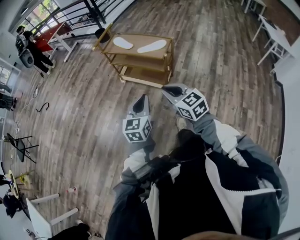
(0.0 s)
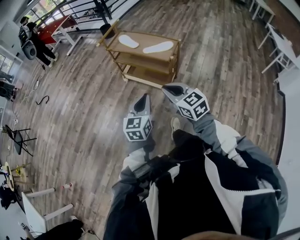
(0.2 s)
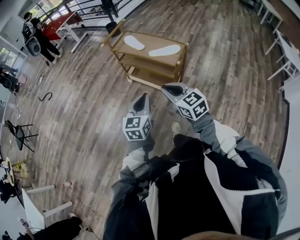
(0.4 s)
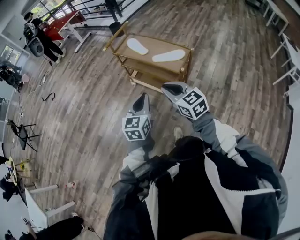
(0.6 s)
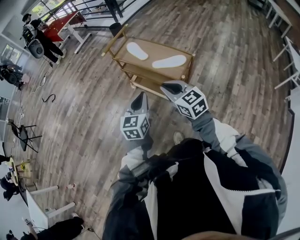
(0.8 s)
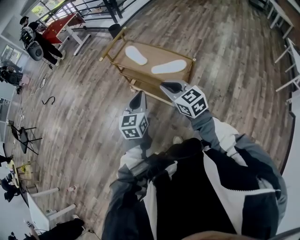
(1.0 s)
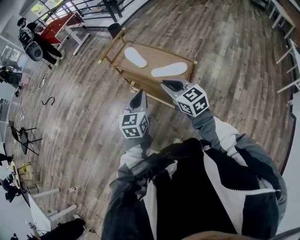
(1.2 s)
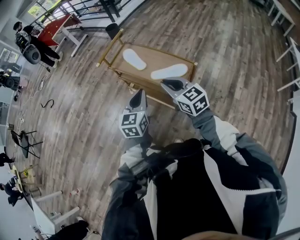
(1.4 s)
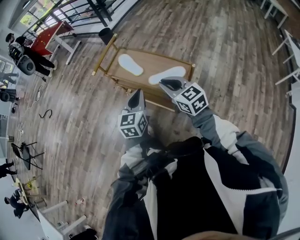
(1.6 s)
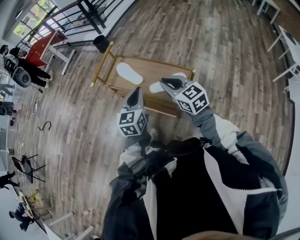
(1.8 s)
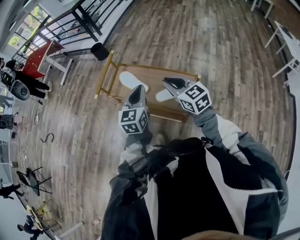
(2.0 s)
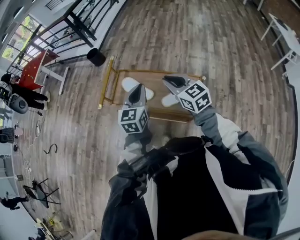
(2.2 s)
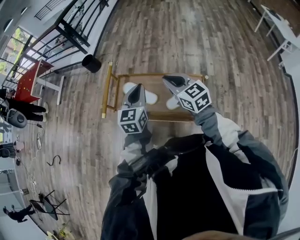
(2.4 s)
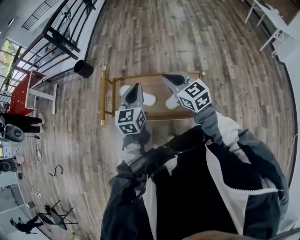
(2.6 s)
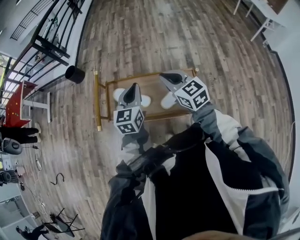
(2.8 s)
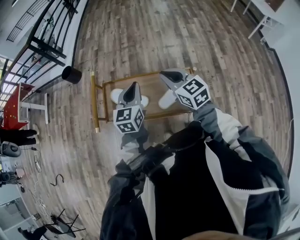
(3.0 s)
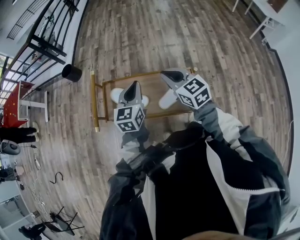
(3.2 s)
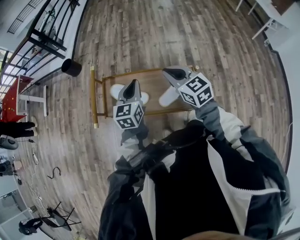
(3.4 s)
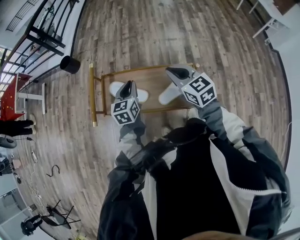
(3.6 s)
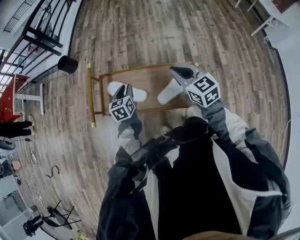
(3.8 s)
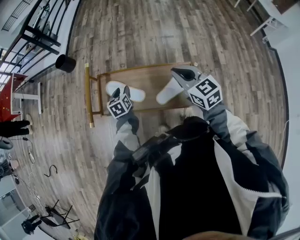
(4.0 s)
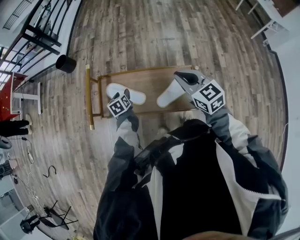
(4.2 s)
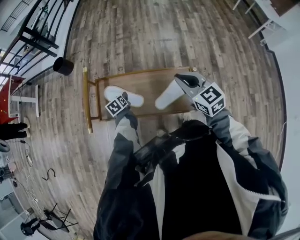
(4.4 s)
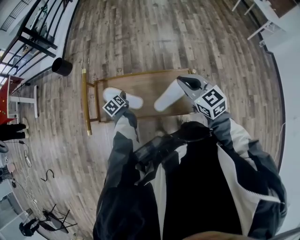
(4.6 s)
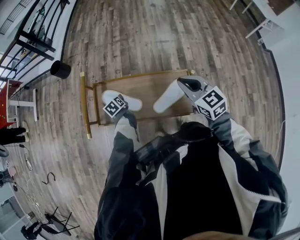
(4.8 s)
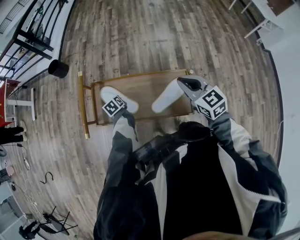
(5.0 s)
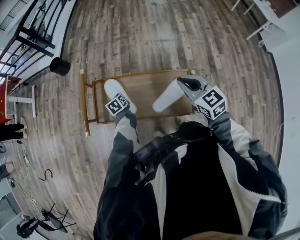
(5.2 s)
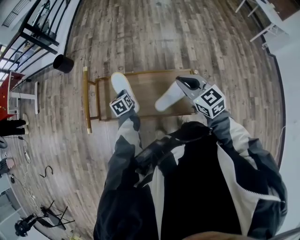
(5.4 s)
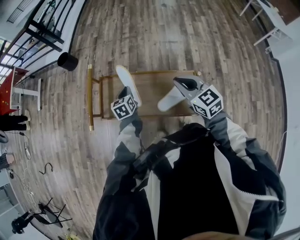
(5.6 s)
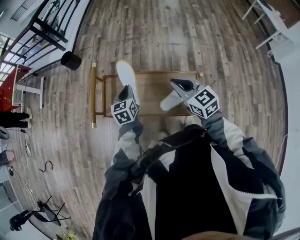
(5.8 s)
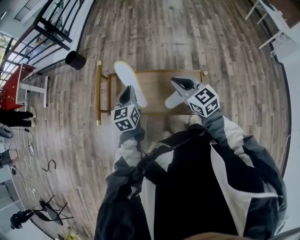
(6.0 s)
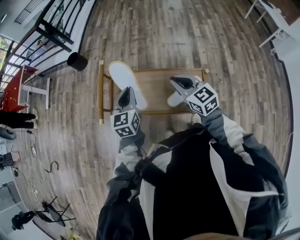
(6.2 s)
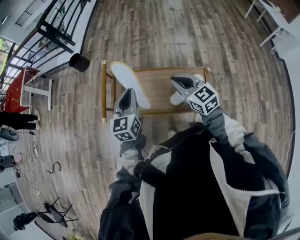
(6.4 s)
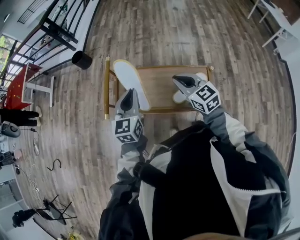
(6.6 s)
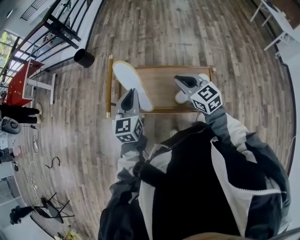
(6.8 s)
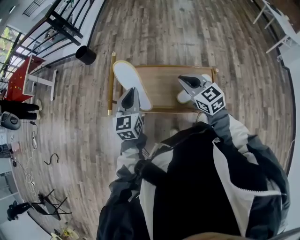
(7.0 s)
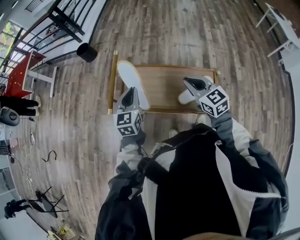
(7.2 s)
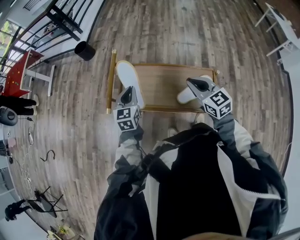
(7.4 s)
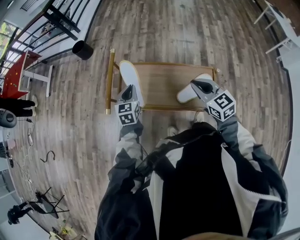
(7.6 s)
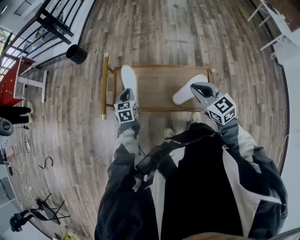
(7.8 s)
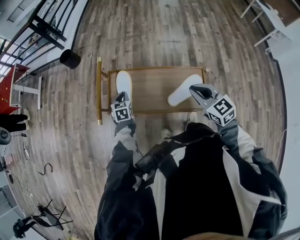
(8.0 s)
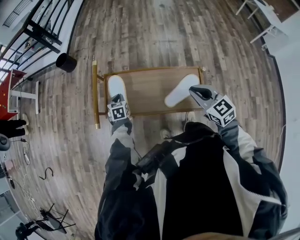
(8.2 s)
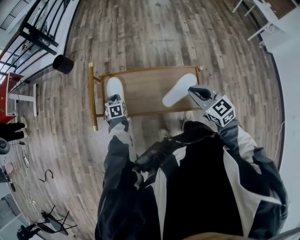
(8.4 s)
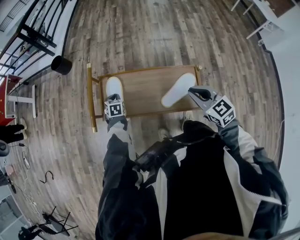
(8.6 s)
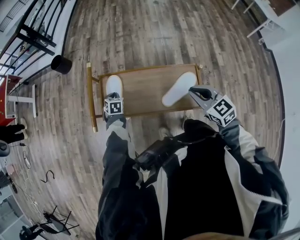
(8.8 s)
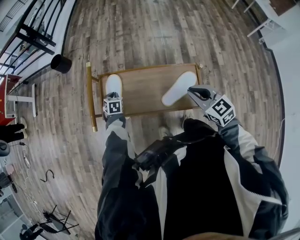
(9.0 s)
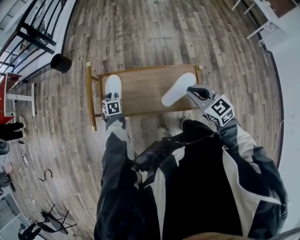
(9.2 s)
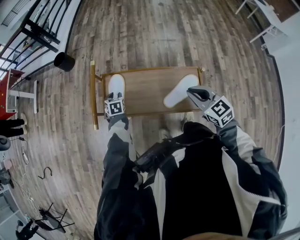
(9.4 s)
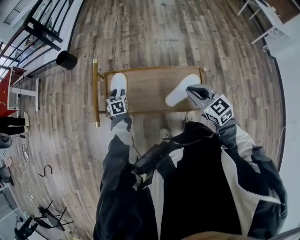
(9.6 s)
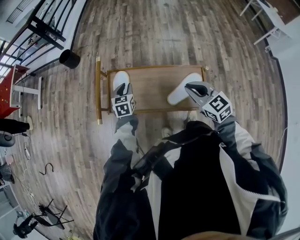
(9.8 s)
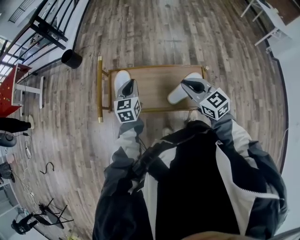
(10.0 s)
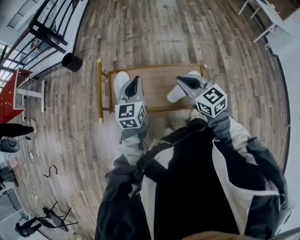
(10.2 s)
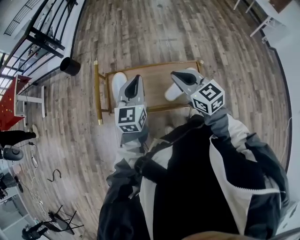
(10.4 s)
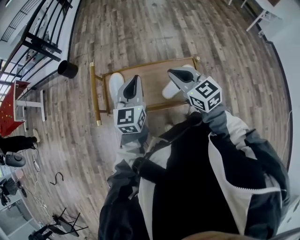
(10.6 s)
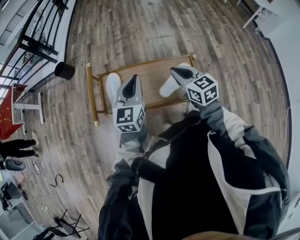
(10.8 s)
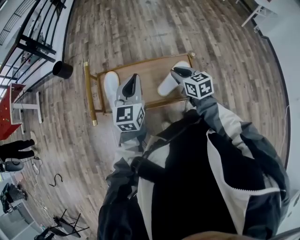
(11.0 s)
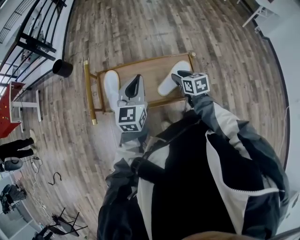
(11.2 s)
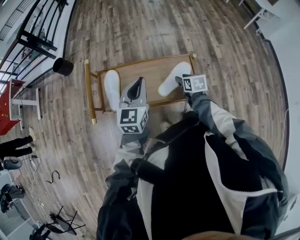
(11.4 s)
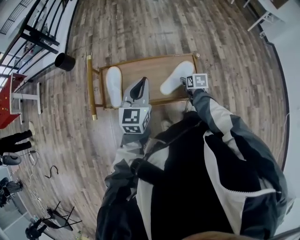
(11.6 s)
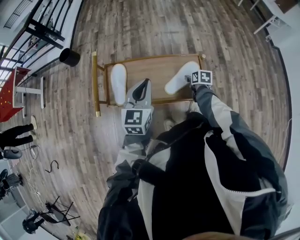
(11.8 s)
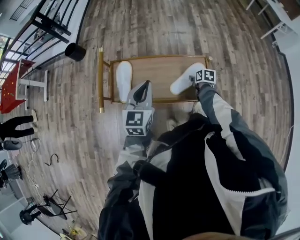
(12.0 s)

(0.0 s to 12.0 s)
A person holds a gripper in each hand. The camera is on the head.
0.0 s - 1.6 s: Both grippers are carried forward, some 40 cm.
1.6 s - 3.0 s: The left gripper shifts by some 25 cm, and turns by roughly 30 degrees; the right gripper changes place by roughly 20 cm, and swivels approximately 30 degrees.
3.0 s - 4.4 s: The left gripper is displaced downward and to the left by roughly 30 cm, angles its fingers downward, by some 40 degrees, and opens; the right gripper shifts about 5 cm to the right.
4.4 s - 6.0 s: The left gripper goes about 20 cm upward, turns by some 40 degrees, and closes; the right gripper heads to the left, covering some 5 cm.
6.0 s - 7.6 s: The left gripper shifts roughly 10 cm to the left and downward.
7.6 s - 9.0 s: The left gripper moves downward and forward, roughly 20 cm, and changes its angle by about 30 degrees. The right gripper moves to the right, some 5 cm.
9.0 s - 10.4 s: The left gripper goes roughly 35 cm upward and to the right, points its fingers roughly 50 degrees further upward, and opens and closes again. Meanwhile the right gripper travels upward and to the left by about 10 cm.
10.4 s - 12.0 s: The left gripper moves roughly 5 cm, while the right gripper shifts roughly 35 cm downward and to the right, tilts its fingers about 40 degrees downward, and opens up.

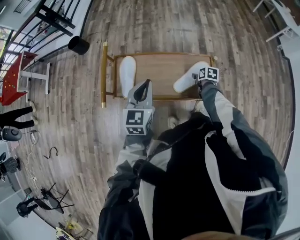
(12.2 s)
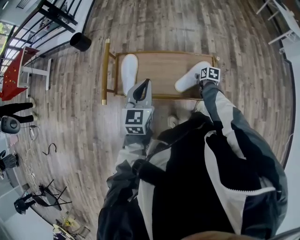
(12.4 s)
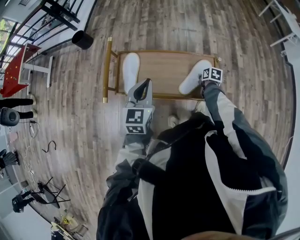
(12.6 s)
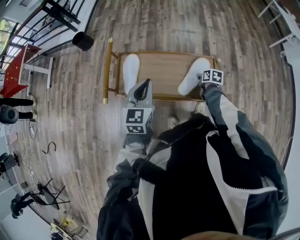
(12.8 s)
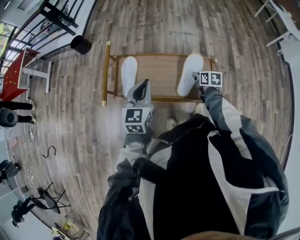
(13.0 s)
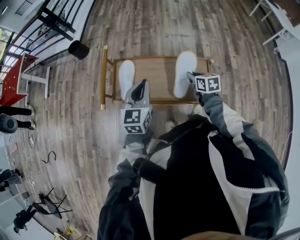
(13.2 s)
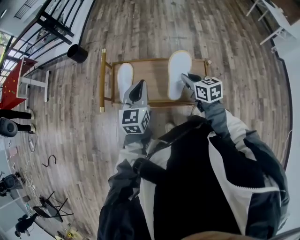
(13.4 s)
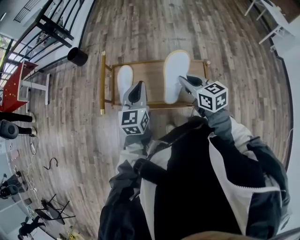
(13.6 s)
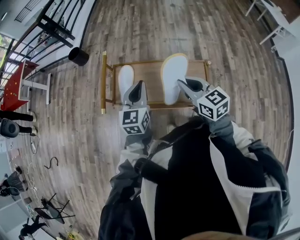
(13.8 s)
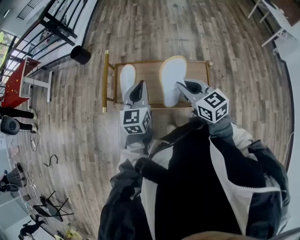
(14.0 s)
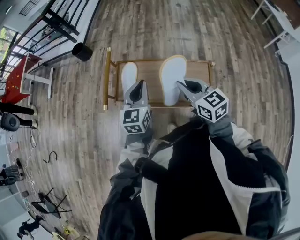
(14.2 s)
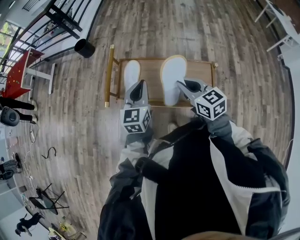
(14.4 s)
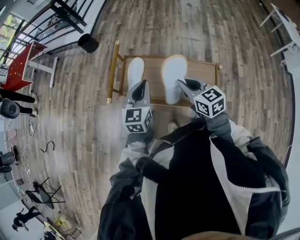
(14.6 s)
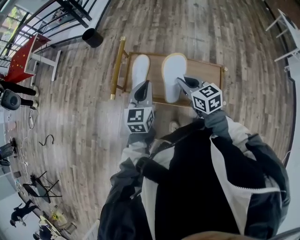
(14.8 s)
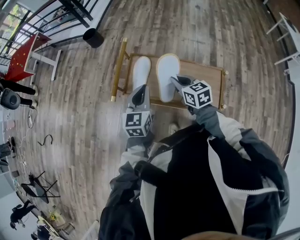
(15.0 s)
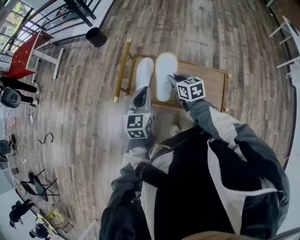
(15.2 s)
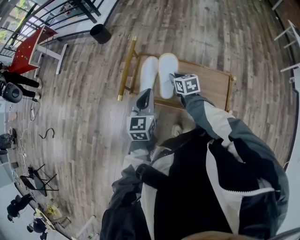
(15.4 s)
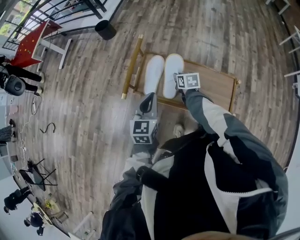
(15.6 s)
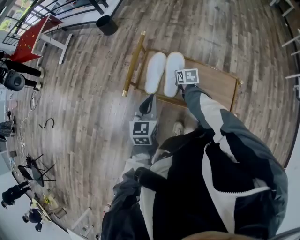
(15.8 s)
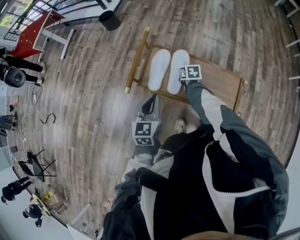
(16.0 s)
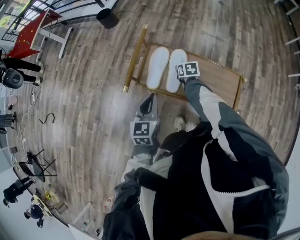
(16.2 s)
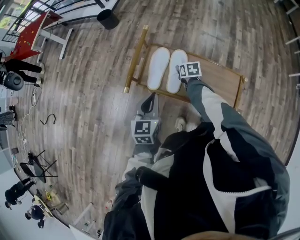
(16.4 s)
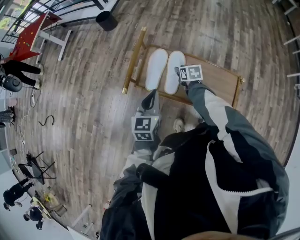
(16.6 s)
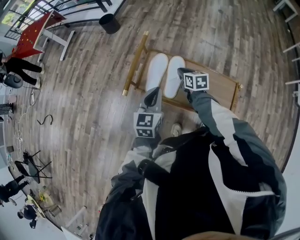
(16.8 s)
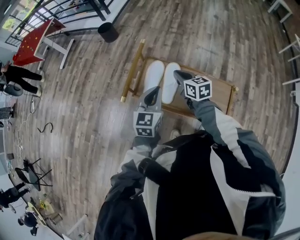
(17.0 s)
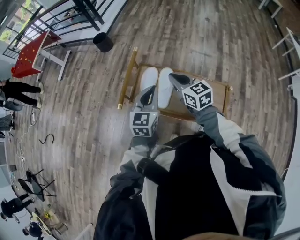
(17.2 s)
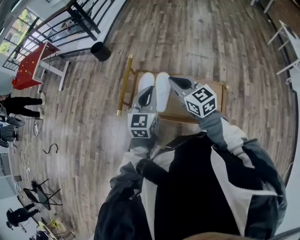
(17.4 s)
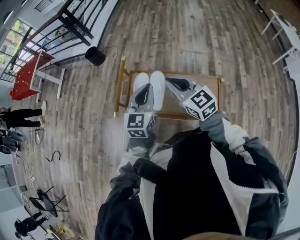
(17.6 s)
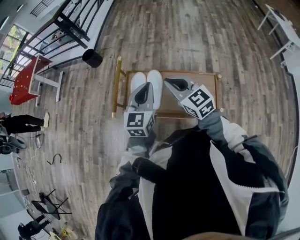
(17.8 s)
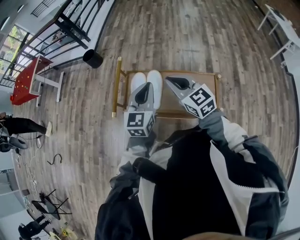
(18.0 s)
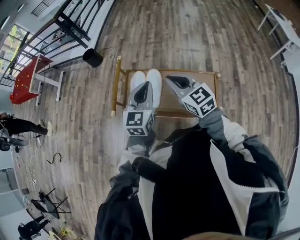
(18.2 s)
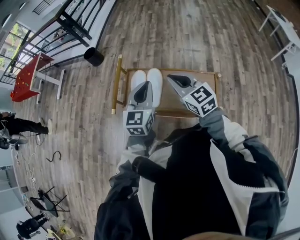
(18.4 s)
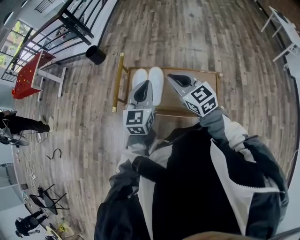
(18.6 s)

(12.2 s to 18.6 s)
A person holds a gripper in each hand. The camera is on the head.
12.2 s - 13.8 s: The right gripper moves upward and to the left, approximately 35 cm, tips its fingers upward by roughly 40 degrees, and closes its fingers.
13.8 s - 15.4 s: The left gripper is displaced to the left by about 10 cm, while the right gripper moves downward, forward and to the left, some 25 cm, and changes its angle by approximately 20 degrees.
15.4 s - 17.0 s: The right gripper heads upward, covering some 10 cm, and opens and closes again.
17.0 s - 18.6 s: The right gripper heads upward, backward and to the right, covering some 20 cm, and changes its angle by some 30 degrees. The left gripper is displaced upward and to the right by about 10 cm.

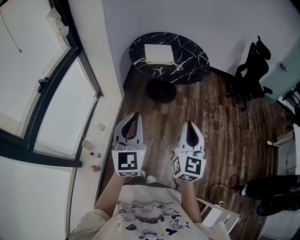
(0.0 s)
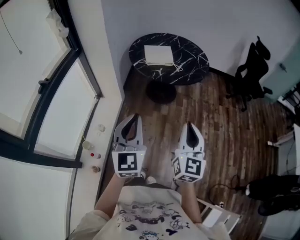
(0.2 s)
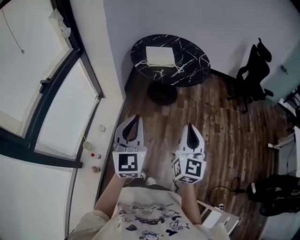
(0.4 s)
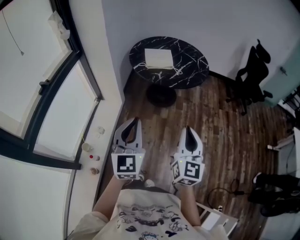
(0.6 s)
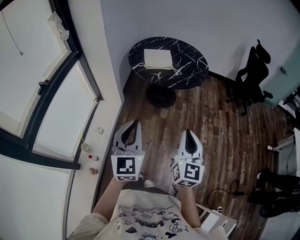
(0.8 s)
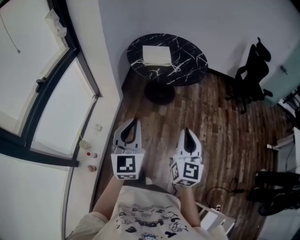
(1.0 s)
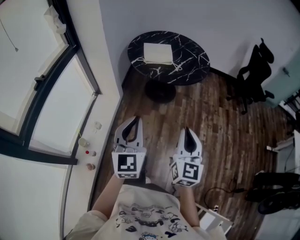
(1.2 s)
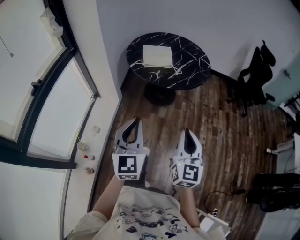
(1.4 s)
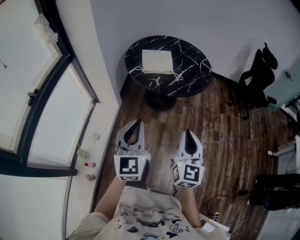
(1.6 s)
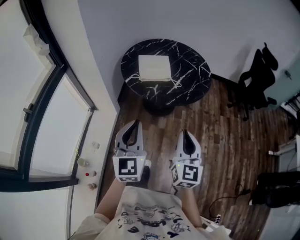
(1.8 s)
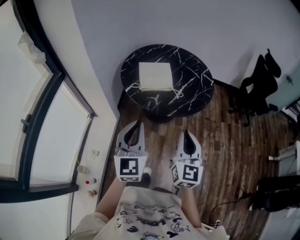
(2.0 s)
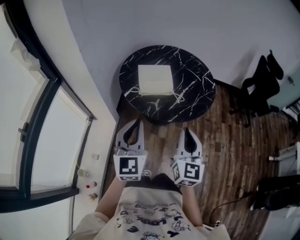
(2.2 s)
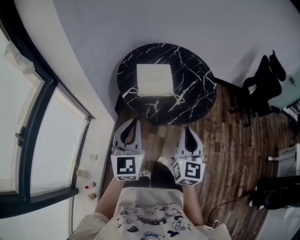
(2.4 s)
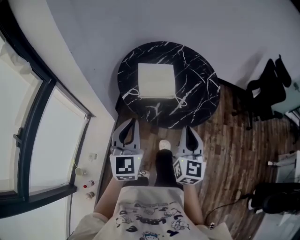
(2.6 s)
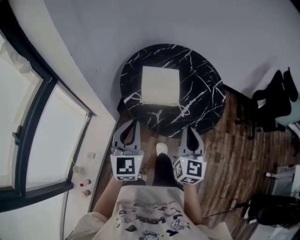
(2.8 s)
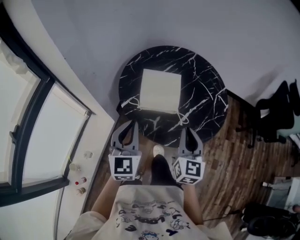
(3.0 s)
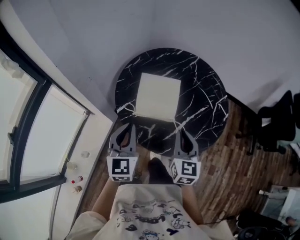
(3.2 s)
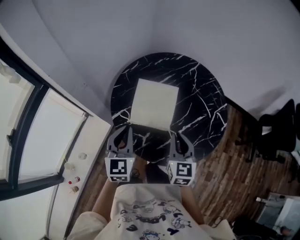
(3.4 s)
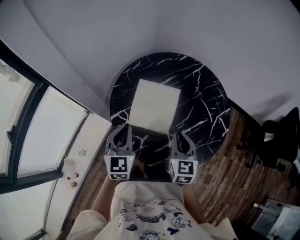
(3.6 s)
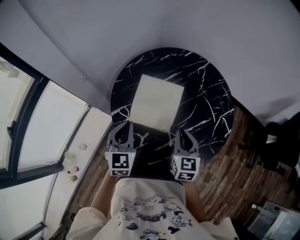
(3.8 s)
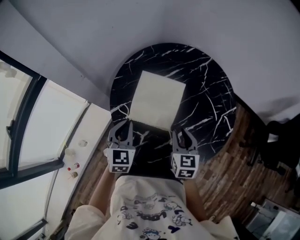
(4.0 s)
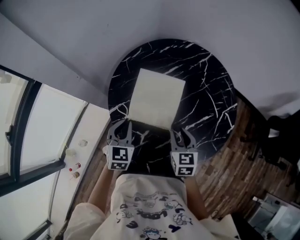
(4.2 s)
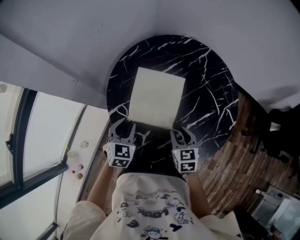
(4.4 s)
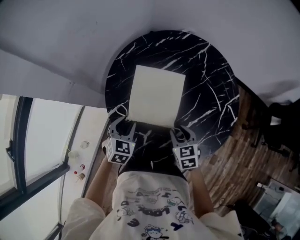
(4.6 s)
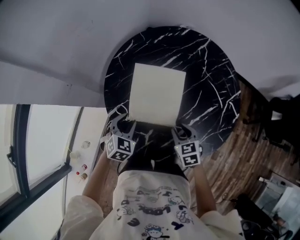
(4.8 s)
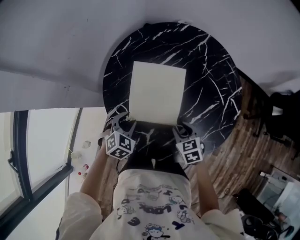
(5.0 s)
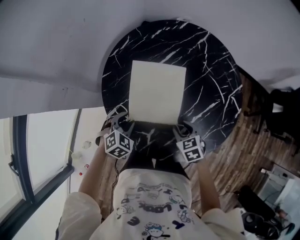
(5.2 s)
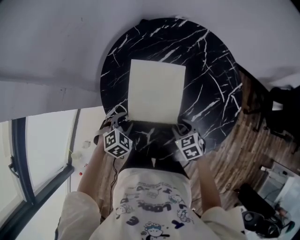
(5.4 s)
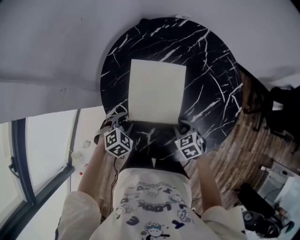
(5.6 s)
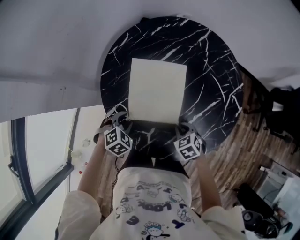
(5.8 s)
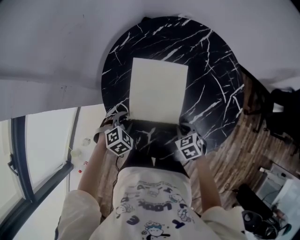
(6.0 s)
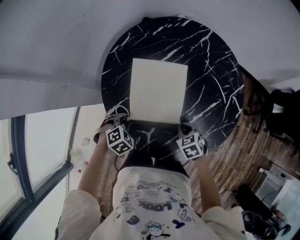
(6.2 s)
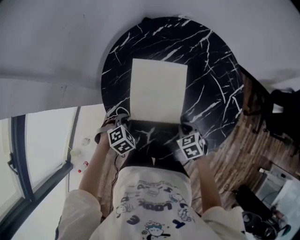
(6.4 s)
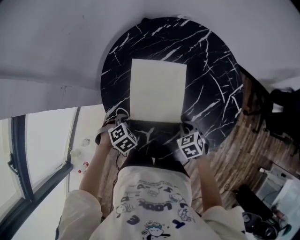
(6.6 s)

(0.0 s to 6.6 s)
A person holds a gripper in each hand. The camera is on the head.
0.0 s - 1.6 s: The two grippers go approximately 10 cm forward.
1.6 s - 3.2 s: The two grippers travel together, forward, about 40 cm. The right gripper changes its angle by about 20 degrees.
3.2 s - 5.0 s: Both grippers travel together downward and forward, some 25 cm. The left gripper tips its fingers downward by about 40 degrees, and opens its fingers. Meanwhile the right gripper points its fingers some 40 degrees further downward, and opens its fingers.
5.0 s - 6.6 s: The left gripper shifts roughly 5 cm downward, swivels approximately 20 degrees, and closes its fingers. The right gripper closes.
